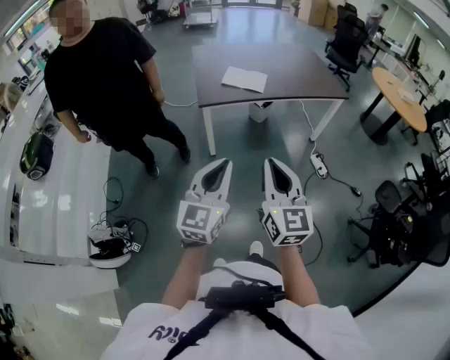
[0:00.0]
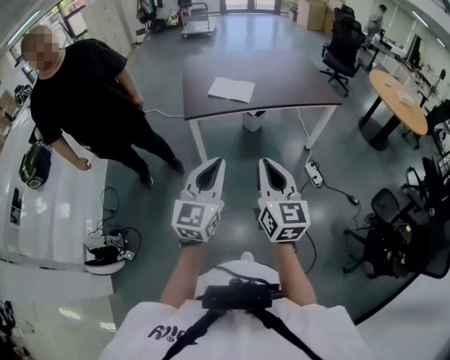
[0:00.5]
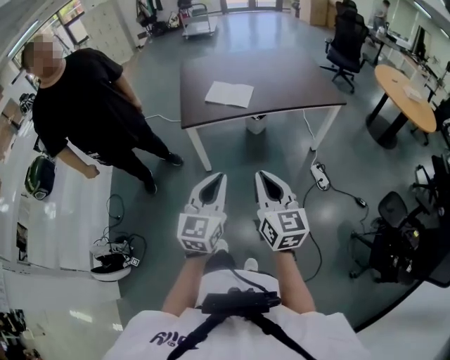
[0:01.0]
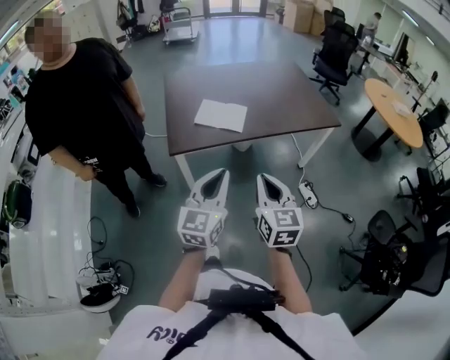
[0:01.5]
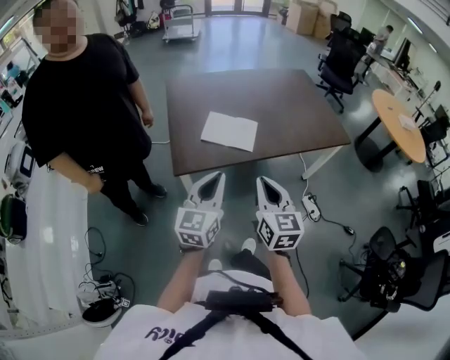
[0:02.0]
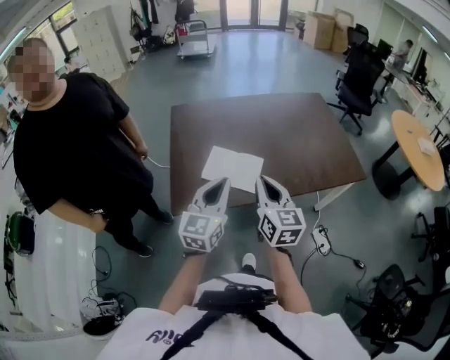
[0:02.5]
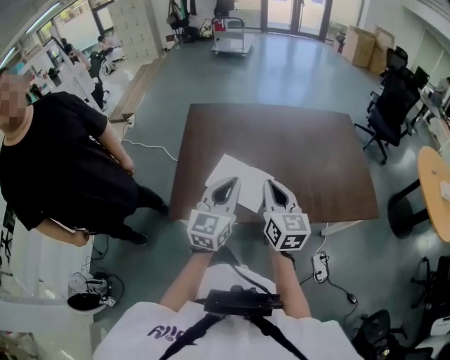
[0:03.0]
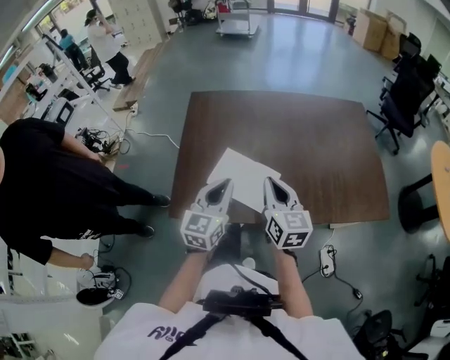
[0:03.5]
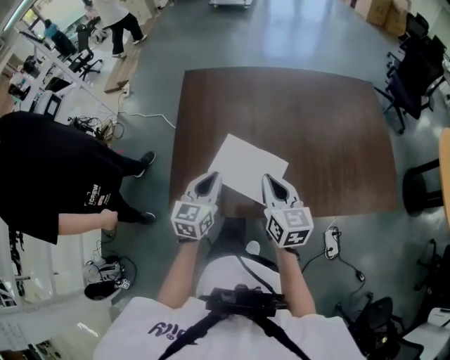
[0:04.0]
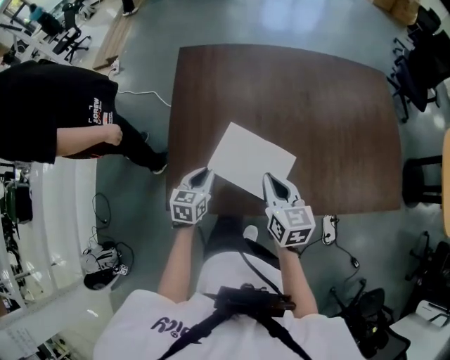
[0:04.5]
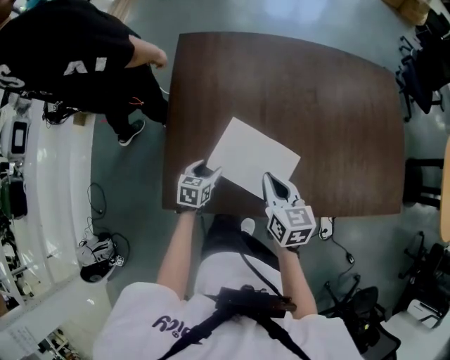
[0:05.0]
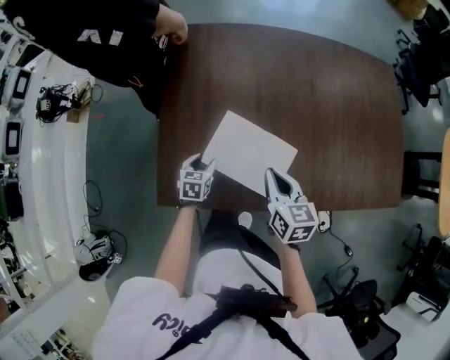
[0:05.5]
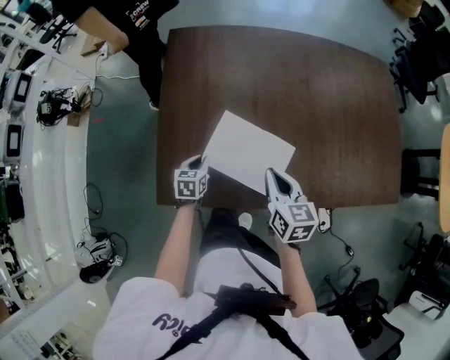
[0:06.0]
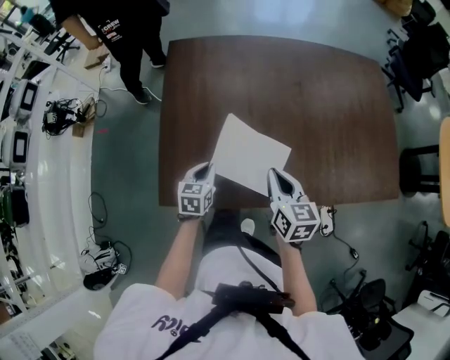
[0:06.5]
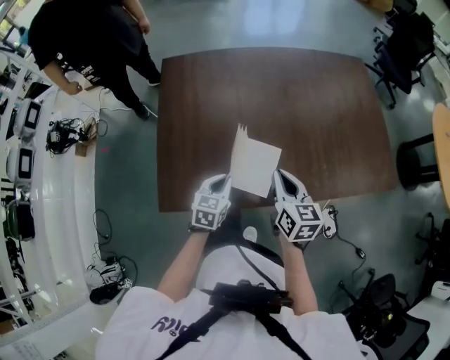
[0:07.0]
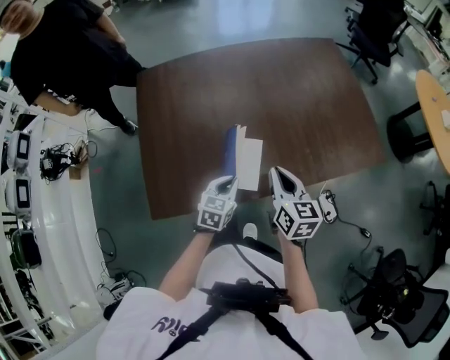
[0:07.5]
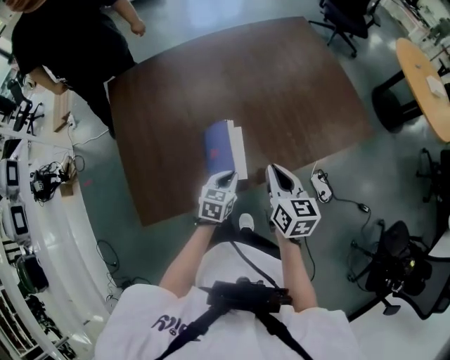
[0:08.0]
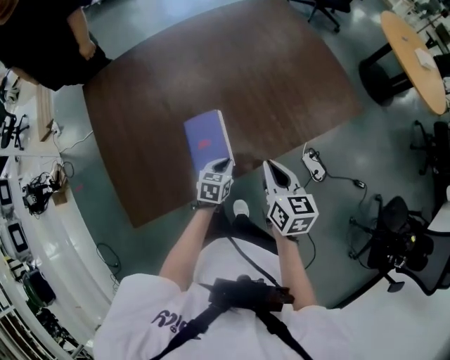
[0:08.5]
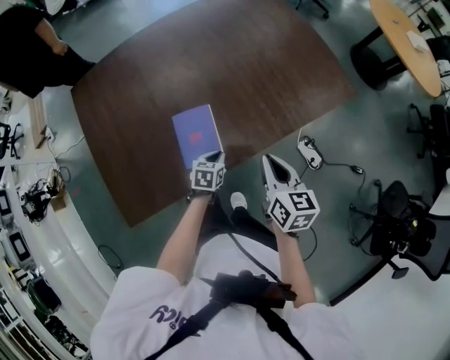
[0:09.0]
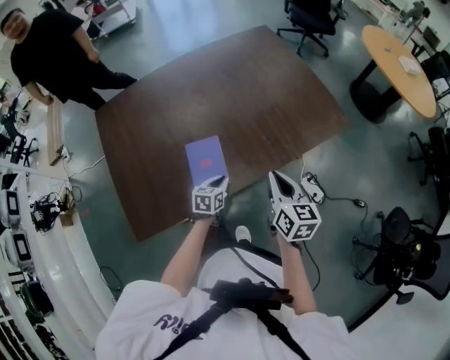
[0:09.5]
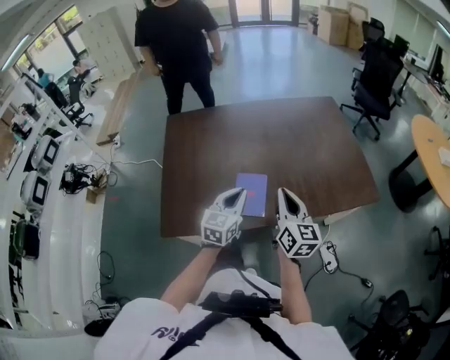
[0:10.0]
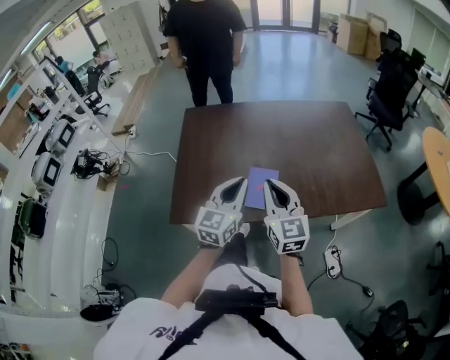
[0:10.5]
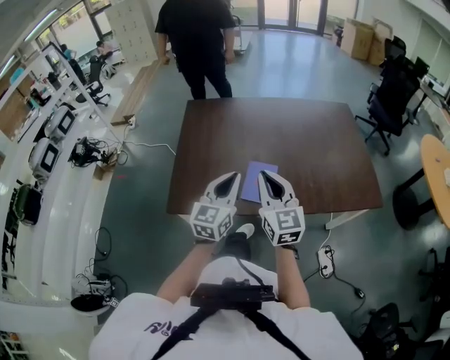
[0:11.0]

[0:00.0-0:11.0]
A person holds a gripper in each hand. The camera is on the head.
0:00.0 to 0:02.0: The two grippers travel together, forward, some 40 cm.
0:02.0 to 0:03.5: Both grippers move forward, about 35 cm.
0:03.5 to 0:05.5: The left gripper heads downward, covering approximately 35 cm, points its fingers roughly 40 degrees further downward, and opens its fingers. Meanwhile the right gripper is displaced downward and forward by some 20 cm, and turns by some 20 degrees.
0:05.5 to 0:07.5: The right gripper heads to the right, backward and upward, covering some 15 cm, and turns by roughly 20 degrees, while the left gripper travels to the right, upward and backward by roughly 25 cm, turns by some 30 degrees, and closes its fingers.
0:07.5 to 0:09.0: The left gripper moves downward and to the right, roughly 20 cm, and changes its angle by approximately 20 degrees. Meanwhile the right gripper is displaced to the right by approximately 15 cm.
0:09.0 to 0:11.0: The right gripper goes roughly 20 cm upward, and changes its angle by approximately 50 degrees. The left gripper travels upward by roughly 40 cm, and tilts its fingers about 50 degrees upward.

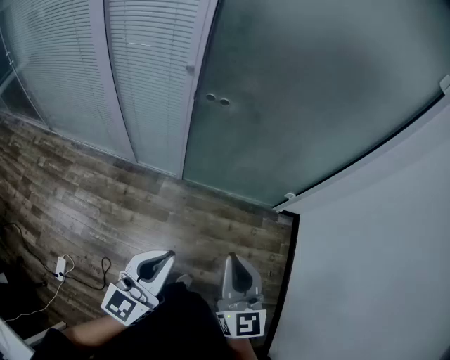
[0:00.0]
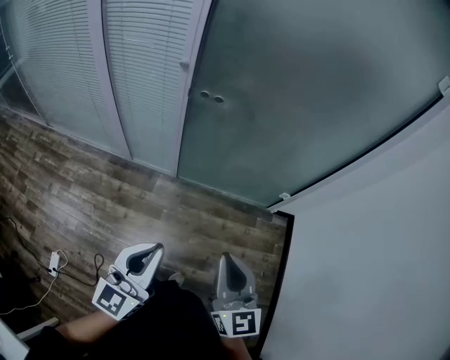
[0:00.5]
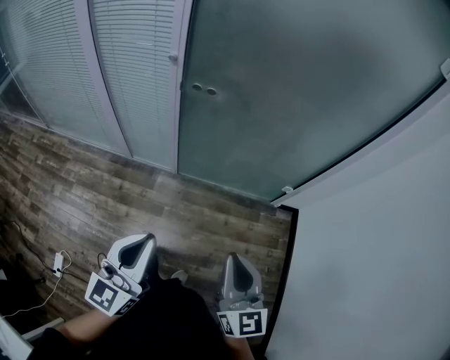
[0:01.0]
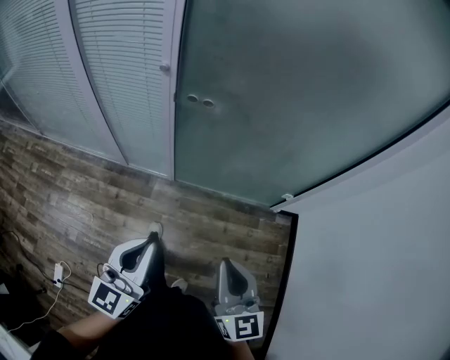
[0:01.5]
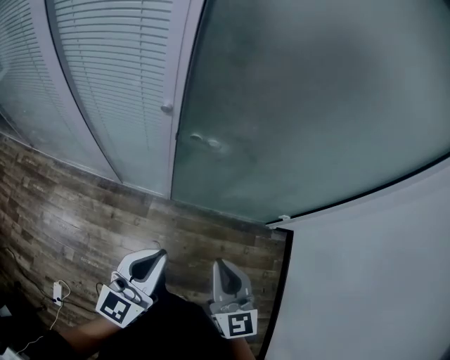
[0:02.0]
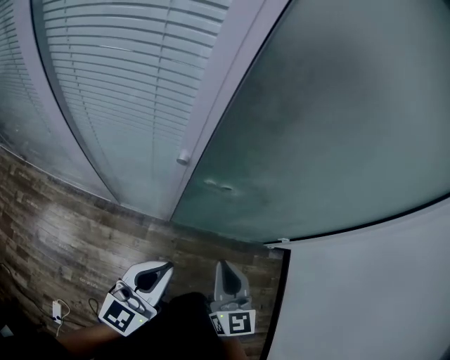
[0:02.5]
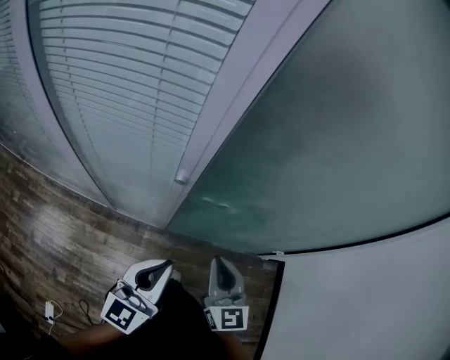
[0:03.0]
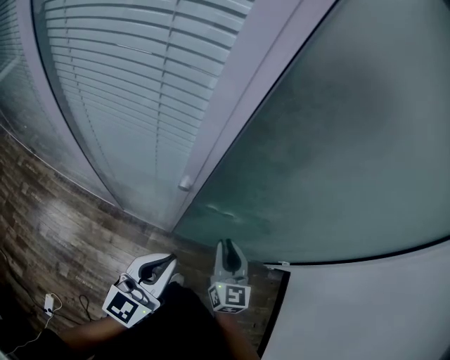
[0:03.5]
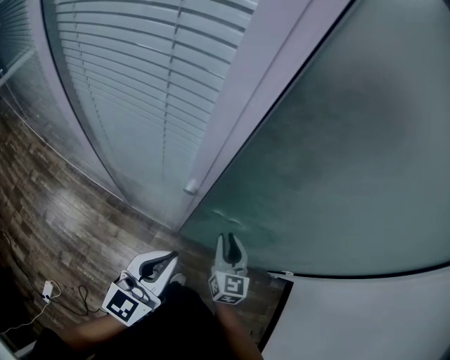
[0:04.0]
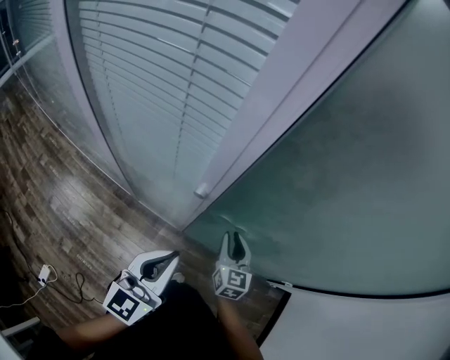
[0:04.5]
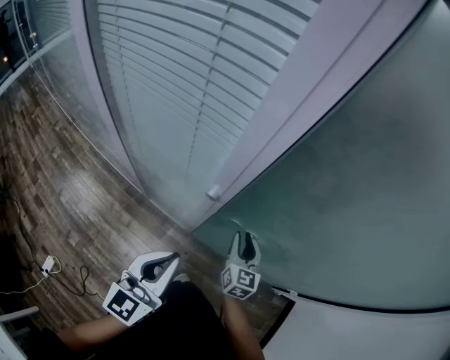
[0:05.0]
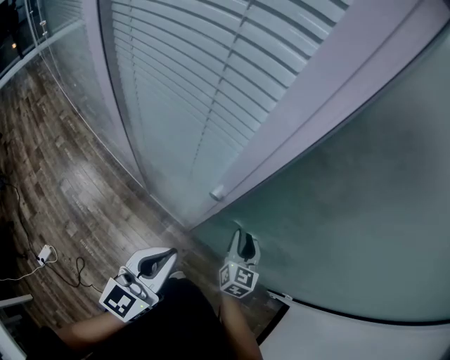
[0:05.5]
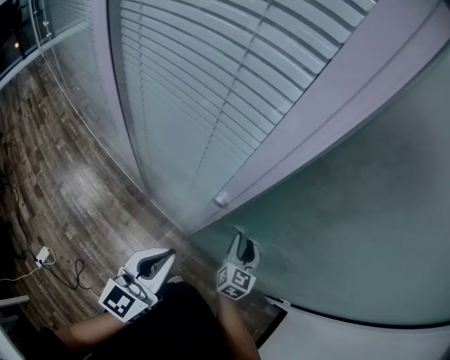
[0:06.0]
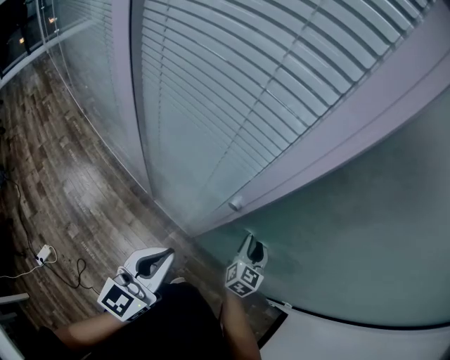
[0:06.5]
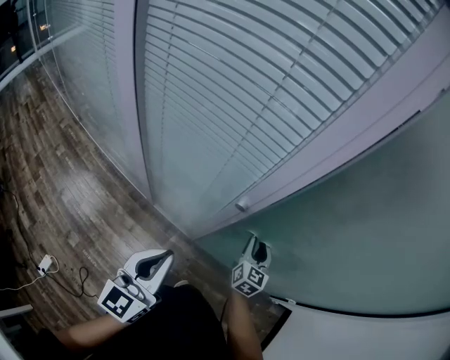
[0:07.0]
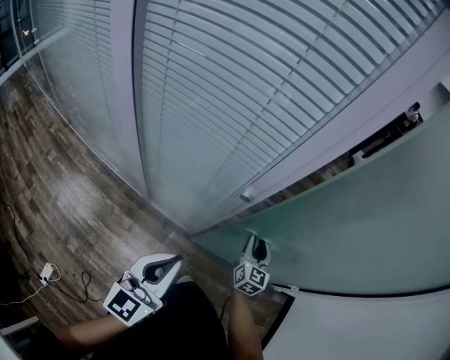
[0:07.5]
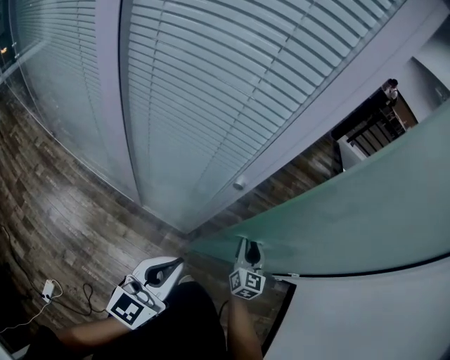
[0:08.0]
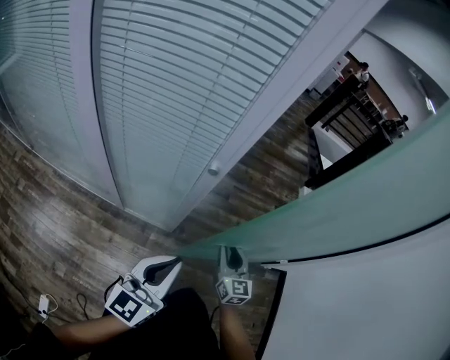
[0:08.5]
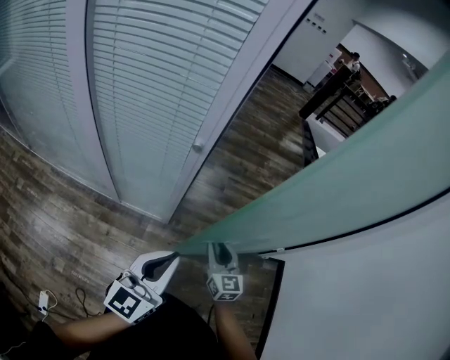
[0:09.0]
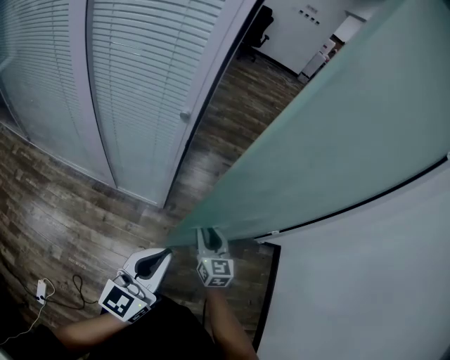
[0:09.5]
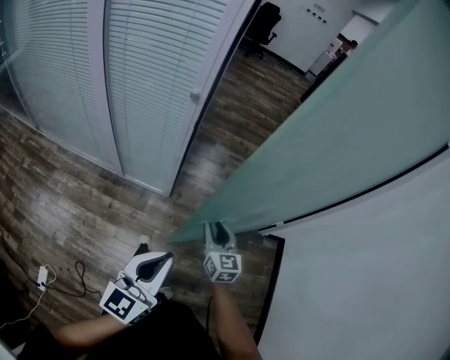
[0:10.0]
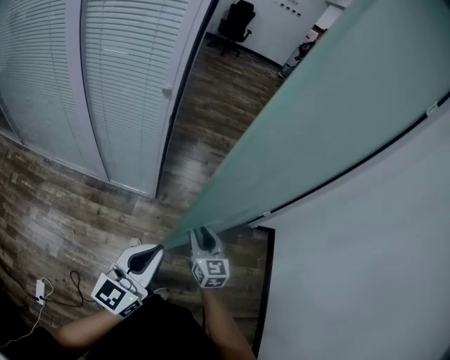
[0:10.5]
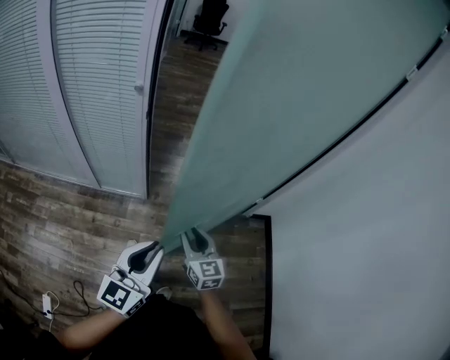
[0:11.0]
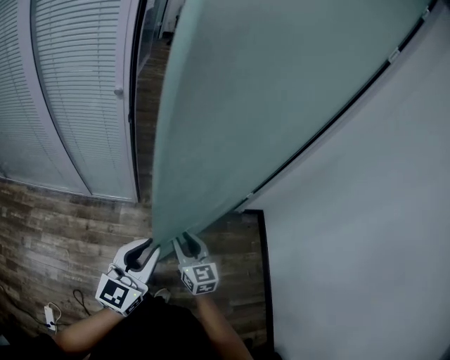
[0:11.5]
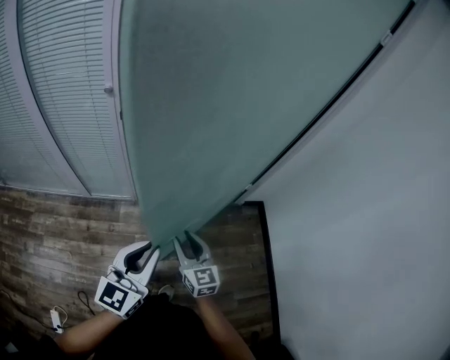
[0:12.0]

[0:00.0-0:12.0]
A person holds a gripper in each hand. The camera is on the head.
0:00.0 to 0:02.0: Both grippers move forward, about 15 cm.
0:02.0 to 0:04.0: The right gripper travels forward and downward by roughly 30 cm, and opens its fingers; the left gripper is displaced forward by about 15 cm.
0:04.0 to 0:06.0: The right gripper moves forward, roughly 5 cm.
0:06.0 to 0:08.0: Both grippers travel together backward, roughly 5 cm.
0:08.0 to 0:10.0: The left gripper moves backward, upward and to the right, some 20 cm, while the right gripper heads backward and upward, covering some 20 cm.
0:10.0 to 0:12.0: The left gripper is displaced to the right by about 10 cm, while the right gripper is displaced backward and to the right by roughly 15 cm.

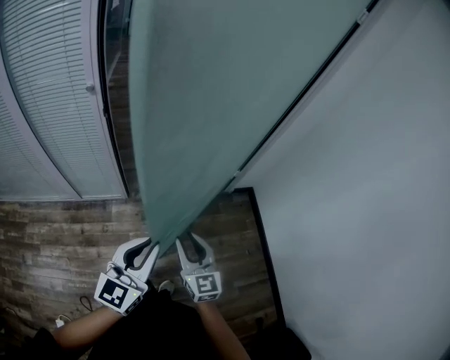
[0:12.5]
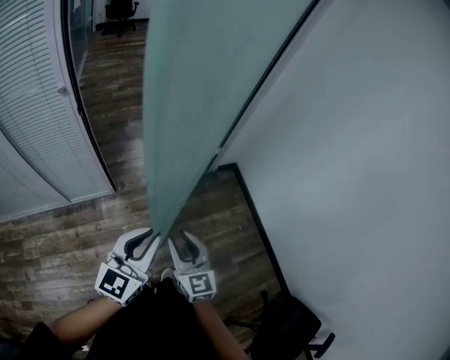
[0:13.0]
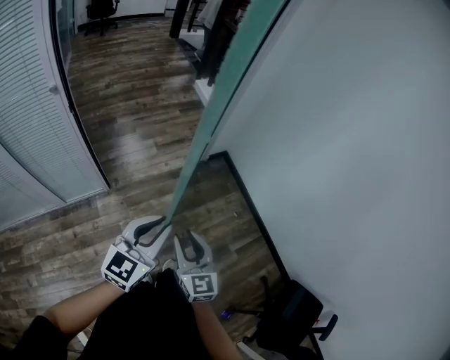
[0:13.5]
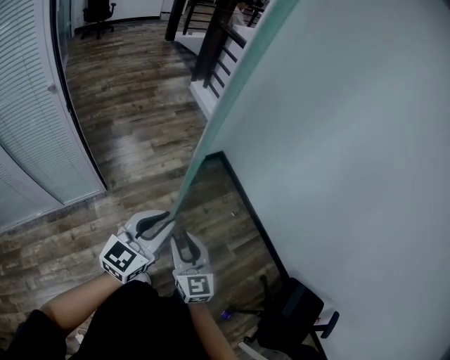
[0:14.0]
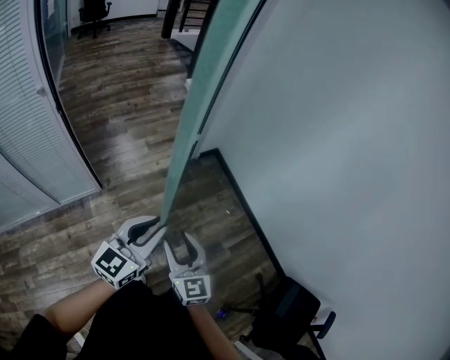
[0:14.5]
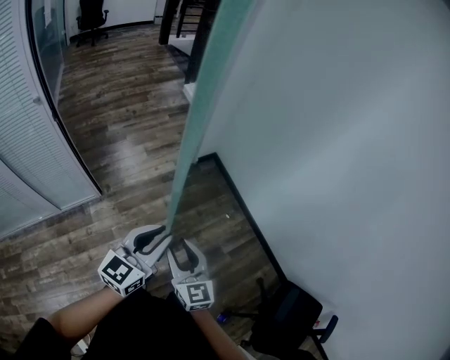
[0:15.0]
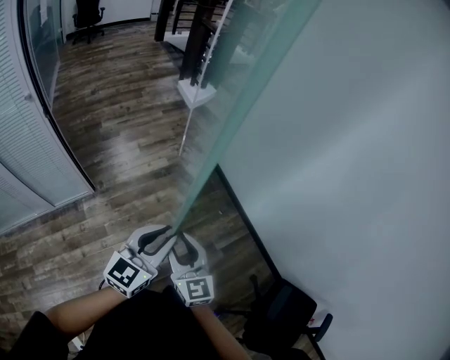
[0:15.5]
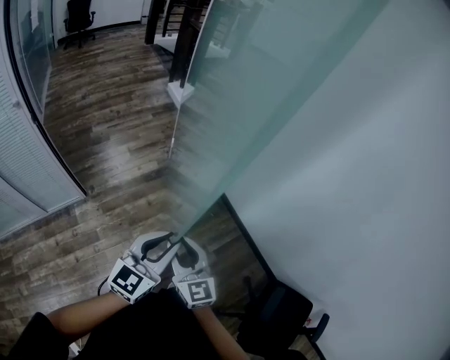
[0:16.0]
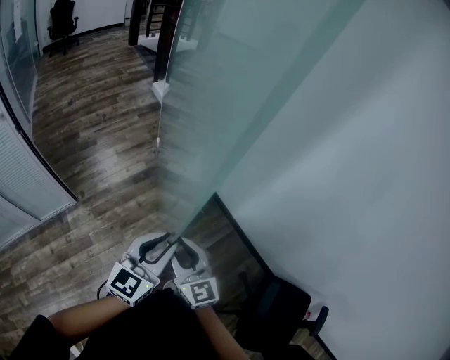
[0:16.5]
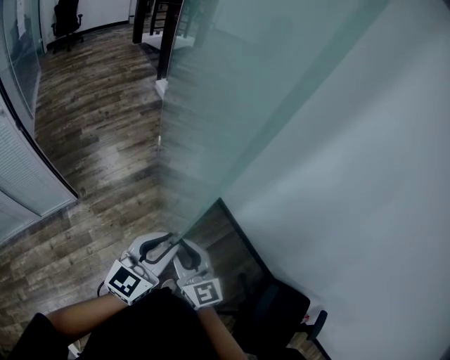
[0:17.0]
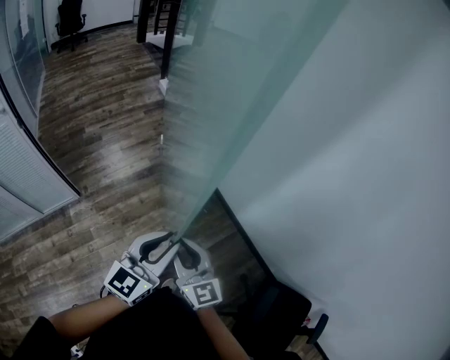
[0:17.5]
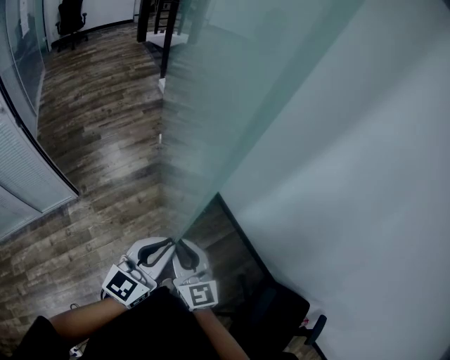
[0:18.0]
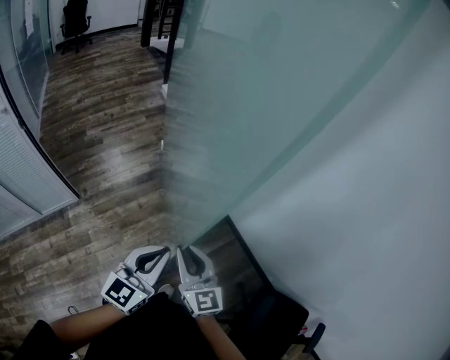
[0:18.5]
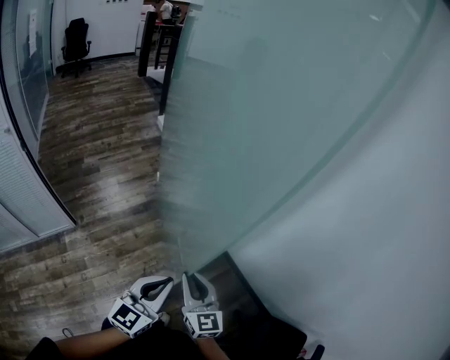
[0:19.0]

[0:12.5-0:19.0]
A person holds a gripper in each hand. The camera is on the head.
0:12.5 to 0:14.5: The right gripper goes approximately 15 cm backward and to the right; the left gripper travels to the right by roughly 10 cm, and turns by about 30 degrees.
0:14.5 to 0:17.0: Both grippers travel together to the right, approximately 20 cm.
0:17.0 to 0:19.0: The right gripper shifts about 5 cm to the right.
